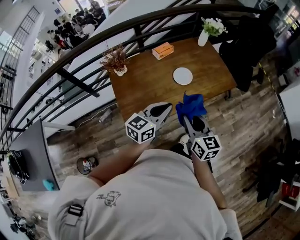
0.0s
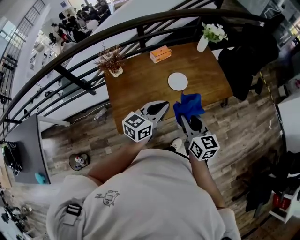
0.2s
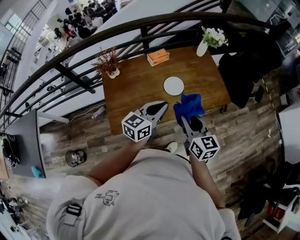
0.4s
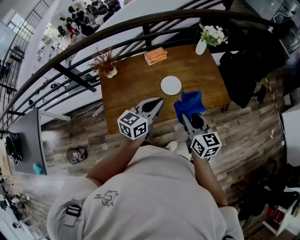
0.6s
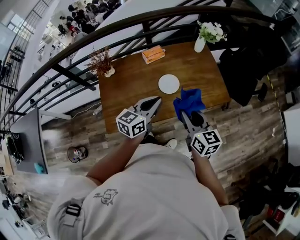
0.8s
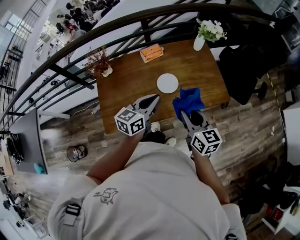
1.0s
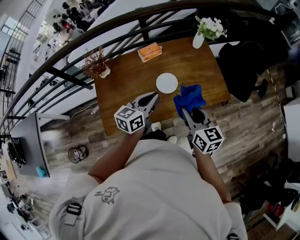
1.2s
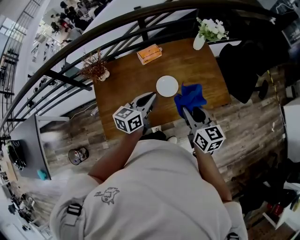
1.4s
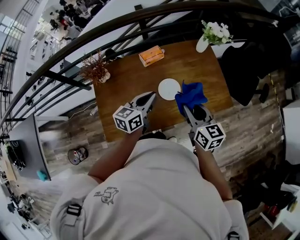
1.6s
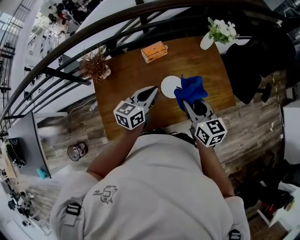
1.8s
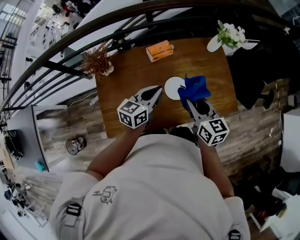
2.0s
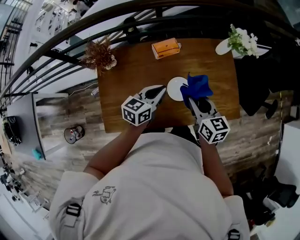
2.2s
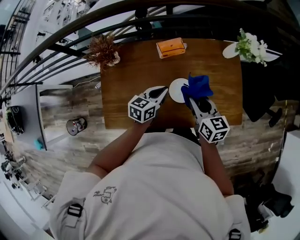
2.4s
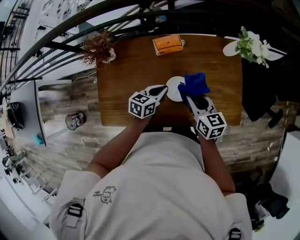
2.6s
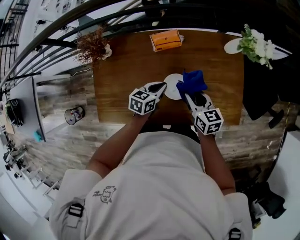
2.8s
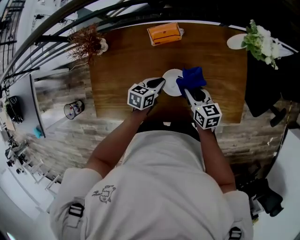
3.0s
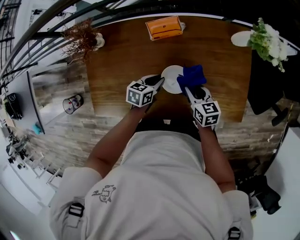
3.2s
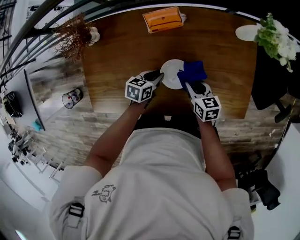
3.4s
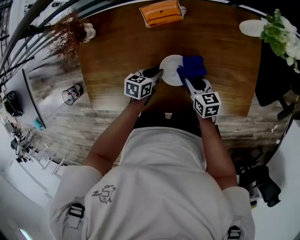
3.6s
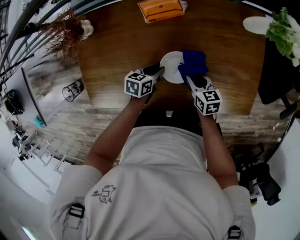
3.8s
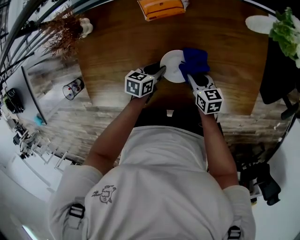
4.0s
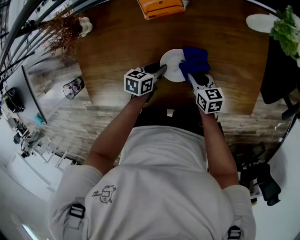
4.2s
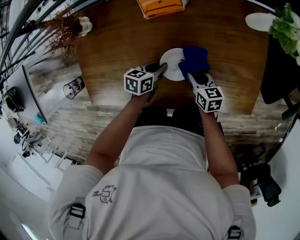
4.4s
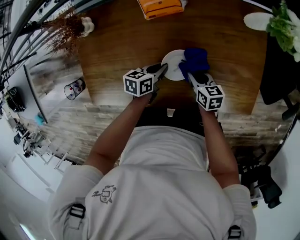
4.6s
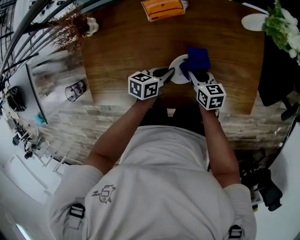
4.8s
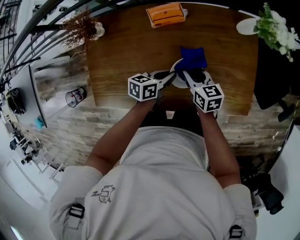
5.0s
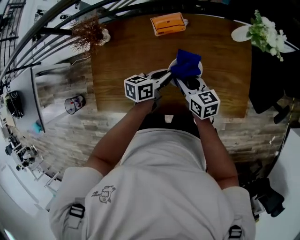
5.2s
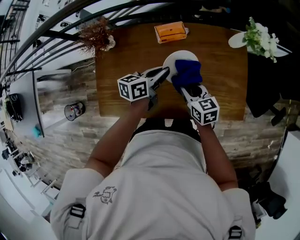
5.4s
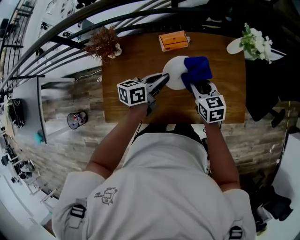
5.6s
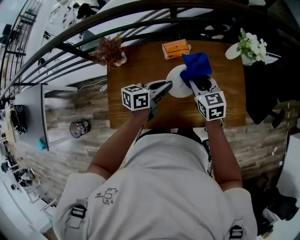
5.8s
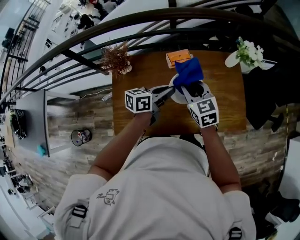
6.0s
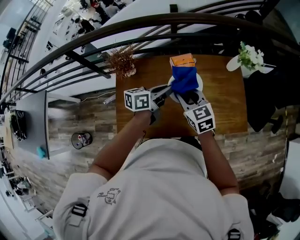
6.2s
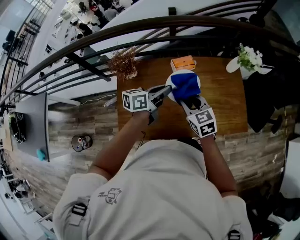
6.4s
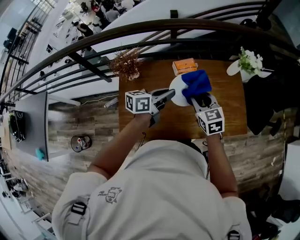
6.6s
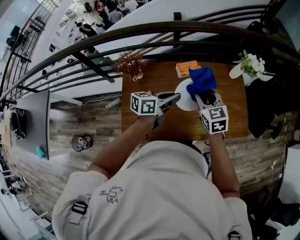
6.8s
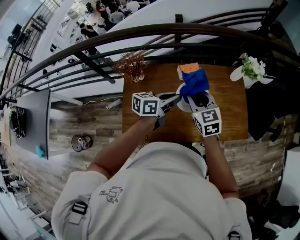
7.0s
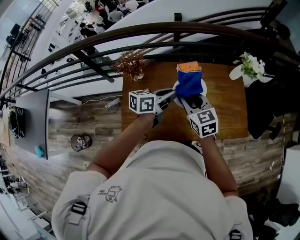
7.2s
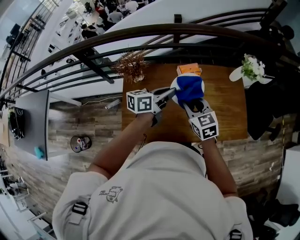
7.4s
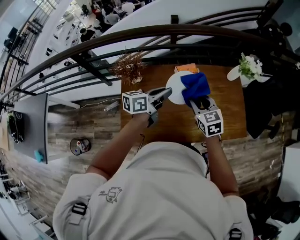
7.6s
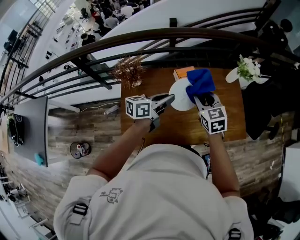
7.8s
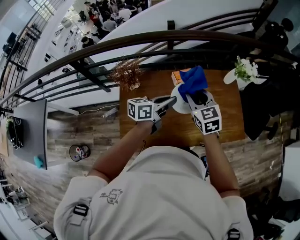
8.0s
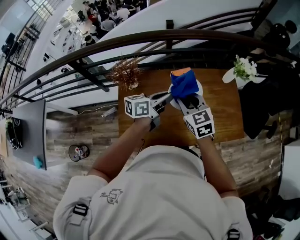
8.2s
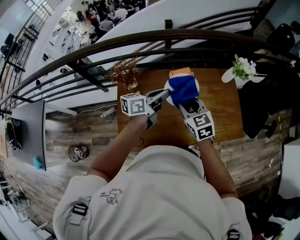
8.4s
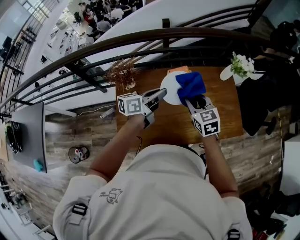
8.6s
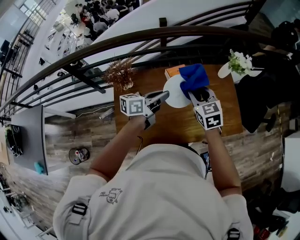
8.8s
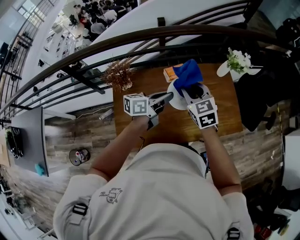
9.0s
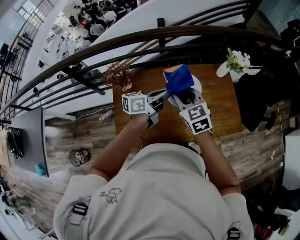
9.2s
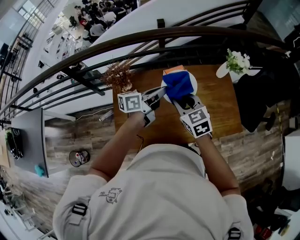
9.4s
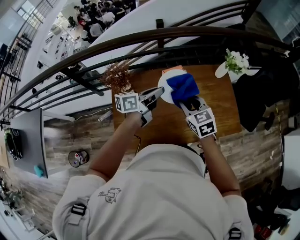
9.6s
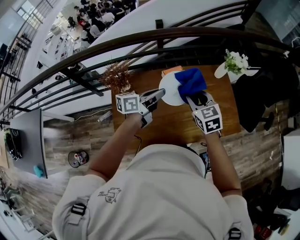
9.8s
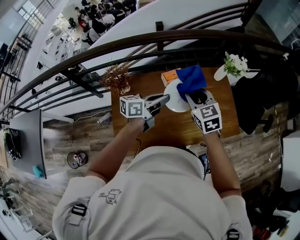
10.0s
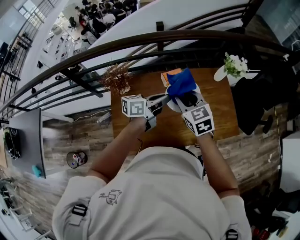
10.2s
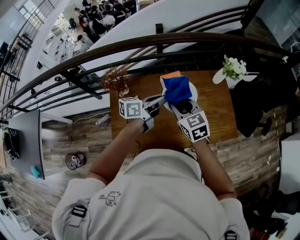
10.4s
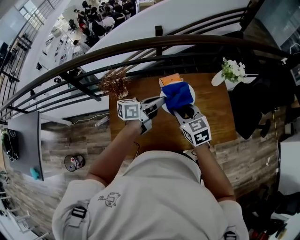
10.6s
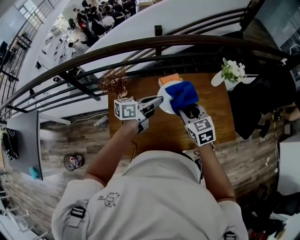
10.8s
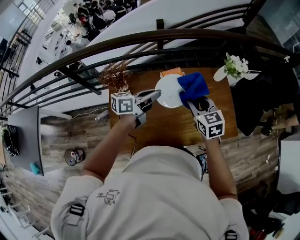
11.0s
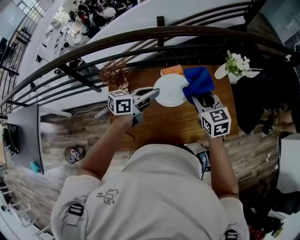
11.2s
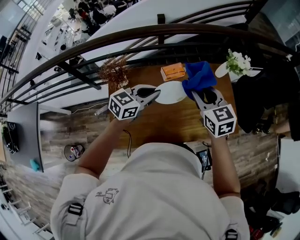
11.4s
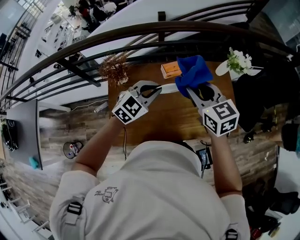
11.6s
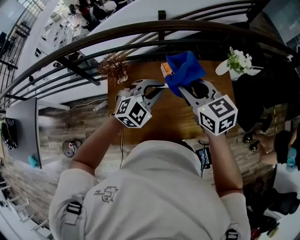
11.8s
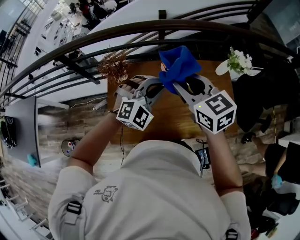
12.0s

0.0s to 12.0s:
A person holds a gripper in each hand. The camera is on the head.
0.0s to 1.6s: The left gripper goes about 25 cm forward, and rotates about 20 degrees; the right gripper travels forward and to the right by roughly 30 cm.
1.6s to 3.0s: Both grippers move downward and forward, about 25 cm. The right gripper swivels about 30 degrees; the left gripper turns by some 30 degrees.
3.0s to 4.4s: The grippers both shift downward by roughly 10 cm.
4.4s to 6.0s: Both grippers move upward, about 30 cm. The left gripper points its fingers approximately 30 degrees further upward; the right gripper turns by some 40 degrees.
6.0s to 7.6s: The right gripper swings left and right, roughly 5 cm each way, with 3 reversals. The left gripper moves to the left and upward, approximately 10 cm.
7.6s to 9.0s: The left gripper heads to the right, covering roughly 5 cm, while the right gripper heads upward, covering some 5 cm.
10.4s to 12.0s: The right gripper travels upward by approximately 10 cm, while the left gripper travels upward by about 5 cm, and rolls clockwise, seen from behind, by roughly 90 degrees.

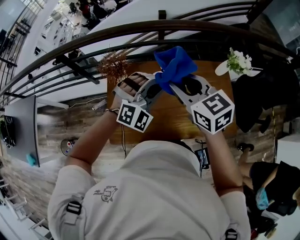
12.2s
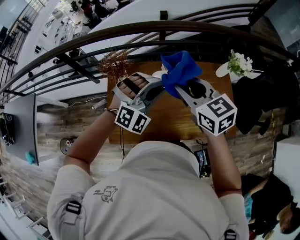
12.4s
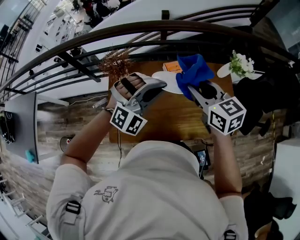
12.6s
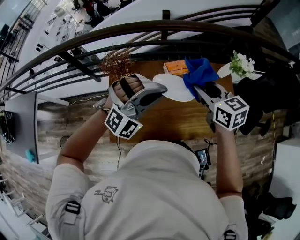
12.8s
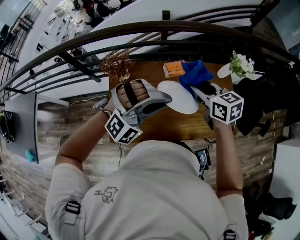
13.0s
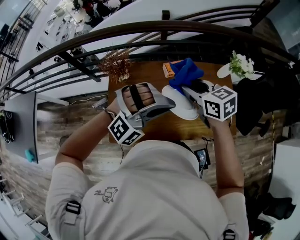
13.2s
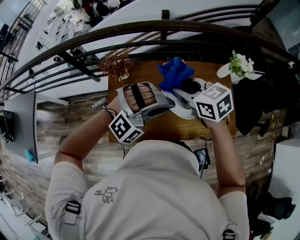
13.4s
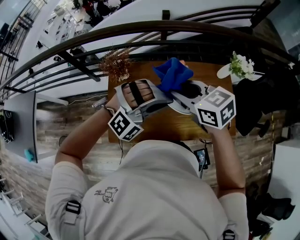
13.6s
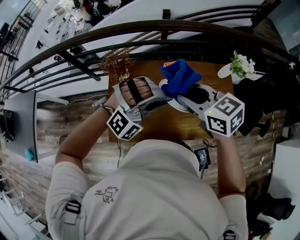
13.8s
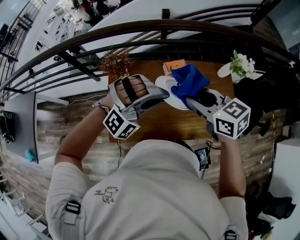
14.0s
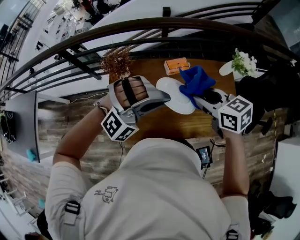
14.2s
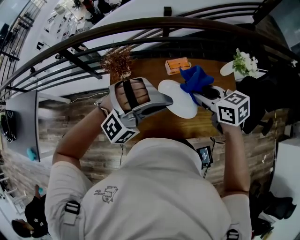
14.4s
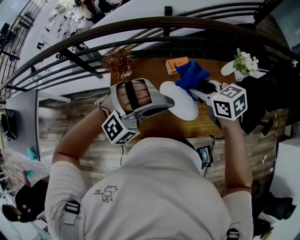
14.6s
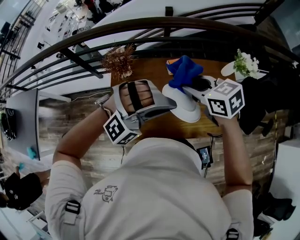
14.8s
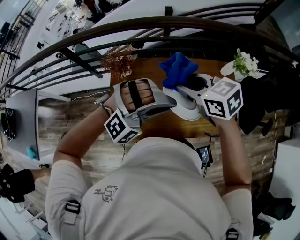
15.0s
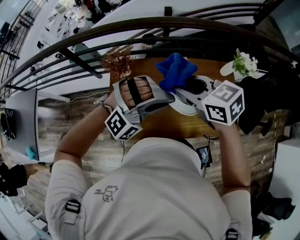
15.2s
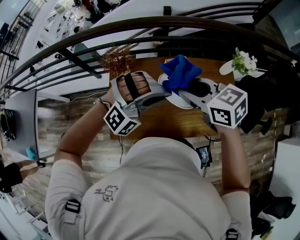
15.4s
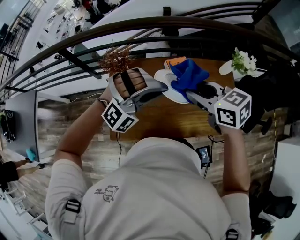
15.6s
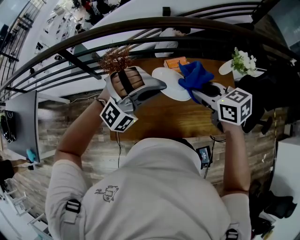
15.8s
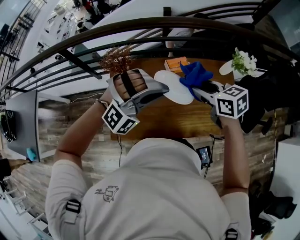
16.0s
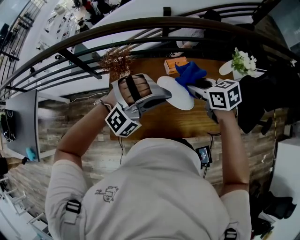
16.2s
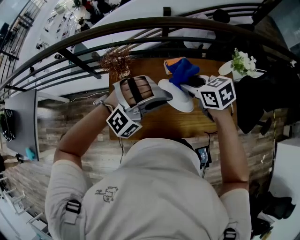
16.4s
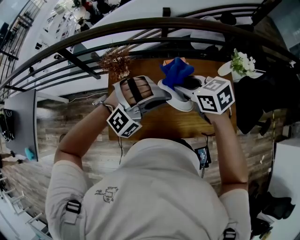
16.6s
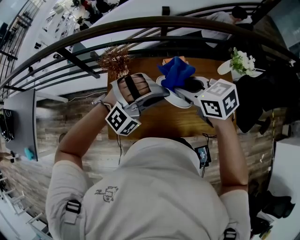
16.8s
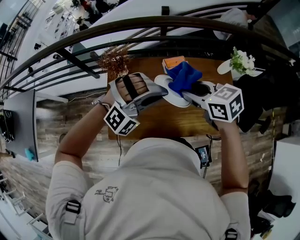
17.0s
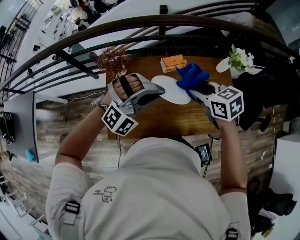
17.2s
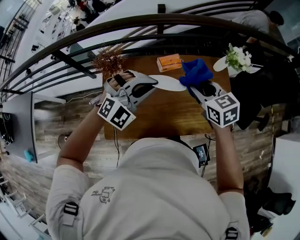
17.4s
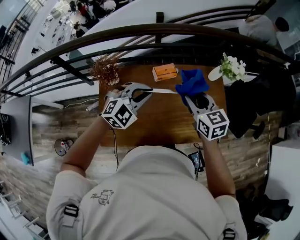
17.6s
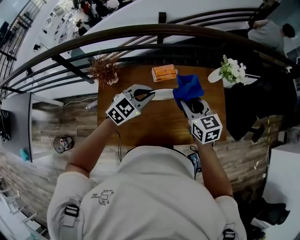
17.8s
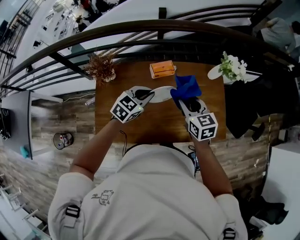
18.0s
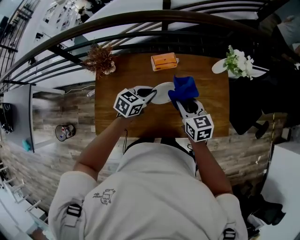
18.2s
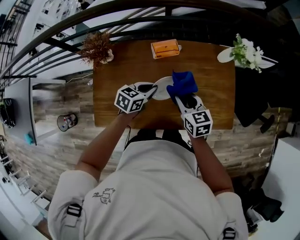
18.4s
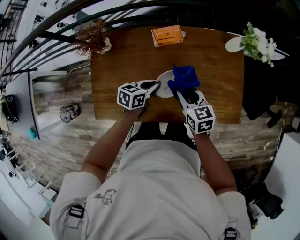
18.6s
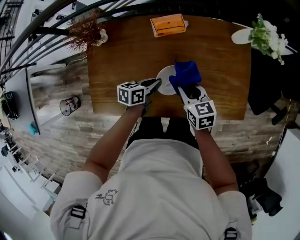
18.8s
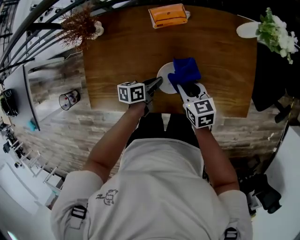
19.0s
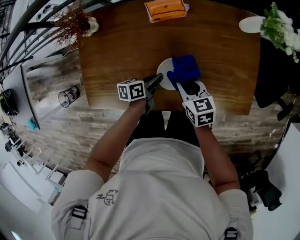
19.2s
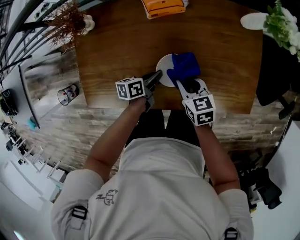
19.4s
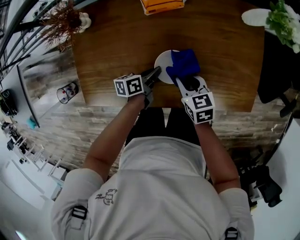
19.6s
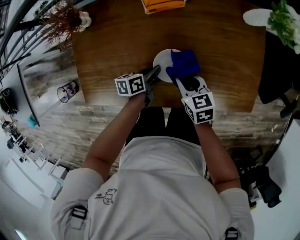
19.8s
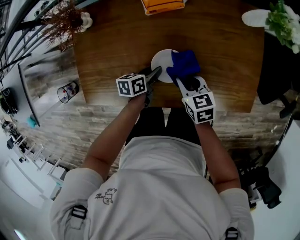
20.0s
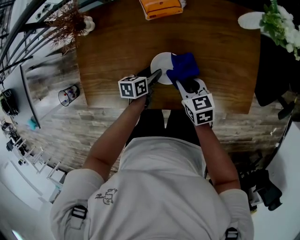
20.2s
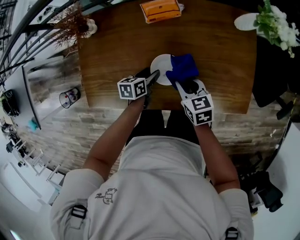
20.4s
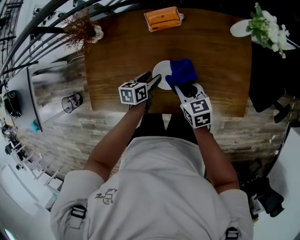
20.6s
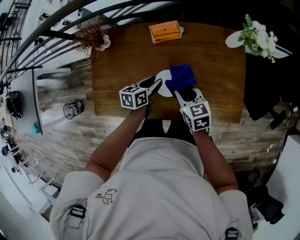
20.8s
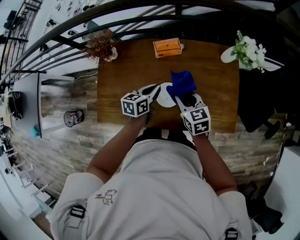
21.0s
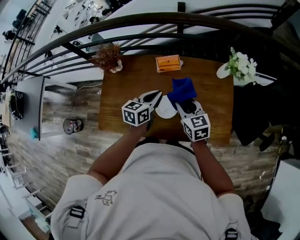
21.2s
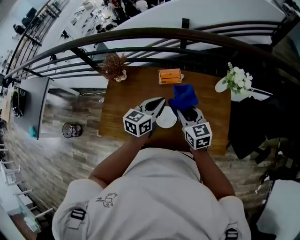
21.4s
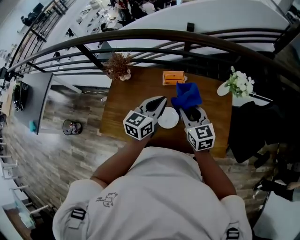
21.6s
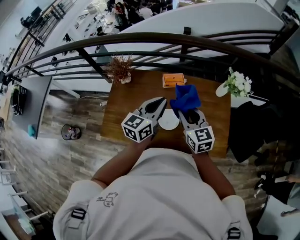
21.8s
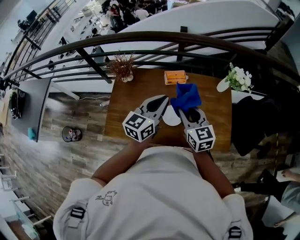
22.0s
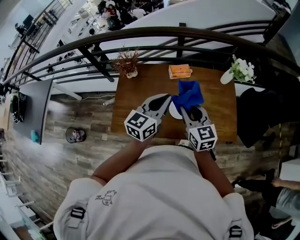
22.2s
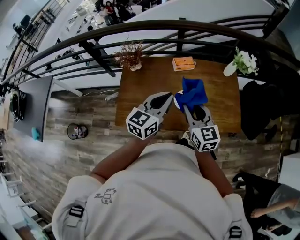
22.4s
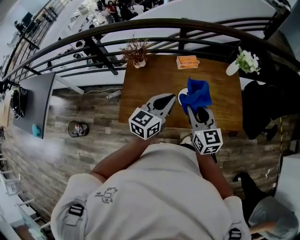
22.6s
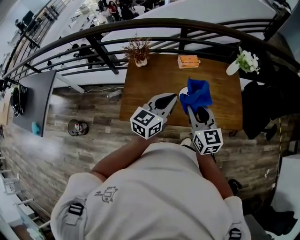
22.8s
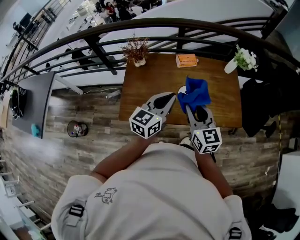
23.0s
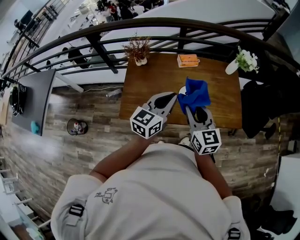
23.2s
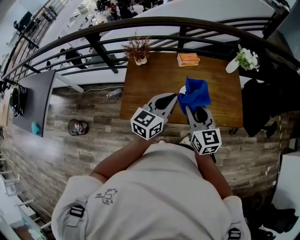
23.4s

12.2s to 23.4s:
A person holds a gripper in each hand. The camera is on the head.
12.2s to 13.8s: The left gripper goes some 5 cm backward, and changes its angle by approximately 20 degrees, while the right gripper moves roughly 10 cm to the right and comes back.
13.8s to 15.4s: The right gripper moves some 5 cm to the right and comes back.
17.0s to 18.6s: The right gripper is displaced downward and to the right by roughly 25 cm. The left gripper moves downward, some 30 cm, and rolls counterclockwise, seen from behind, by some 120 degrees.
18.6s to 20.2s: The grippers both shift downward by roughly 15 cm. The left gripper swivels some 20 degrees, and opens its fingers.
20.2s to 21.8s: The two grippers go some 35 cm upward. The right gripper rotates roughly 30 degrees, while the left gripper tilts its fingers about 40 degrees upward, and closes.
21.8s to 23.4s: The two grippers go approximately 20 cm backward and to the left.
